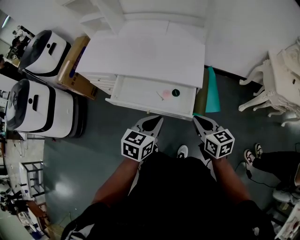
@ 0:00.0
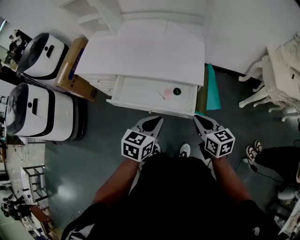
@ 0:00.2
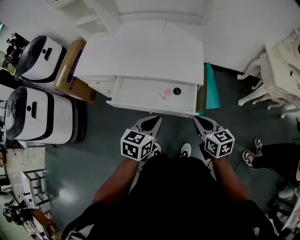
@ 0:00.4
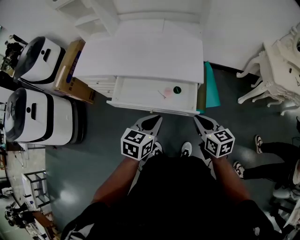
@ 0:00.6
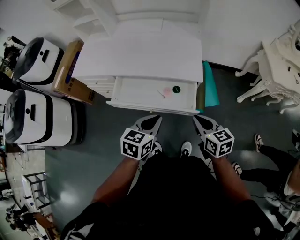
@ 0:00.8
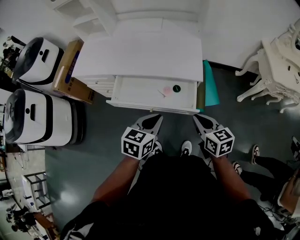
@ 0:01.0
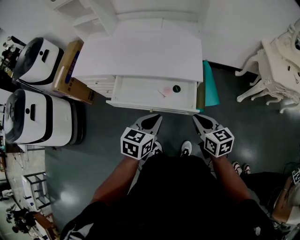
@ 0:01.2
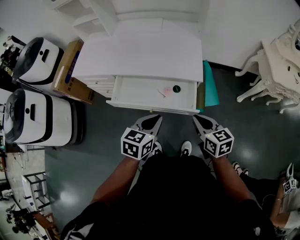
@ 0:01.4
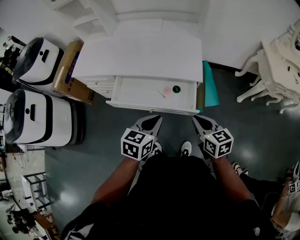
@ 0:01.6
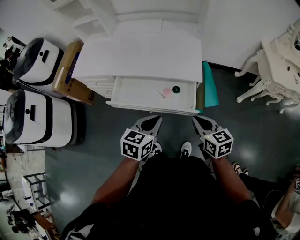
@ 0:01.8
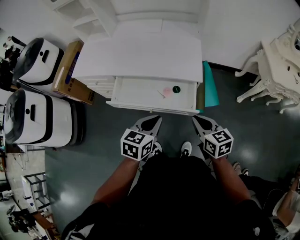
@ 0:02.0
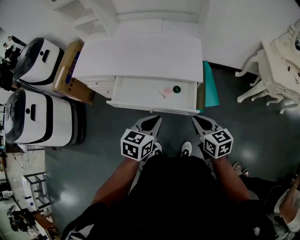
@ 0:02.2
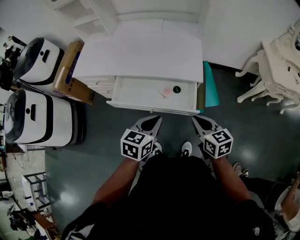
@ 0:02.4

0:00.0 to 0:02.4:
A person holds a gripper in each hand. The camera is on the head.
0:00.0 to 0:01.2: There are only small adjustments of the grippers.
0:01.2 to 0:02.4: Both grippers stay about where they are.

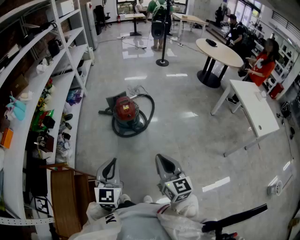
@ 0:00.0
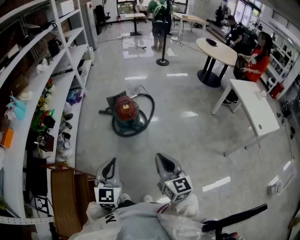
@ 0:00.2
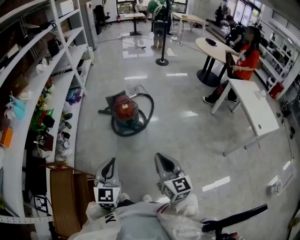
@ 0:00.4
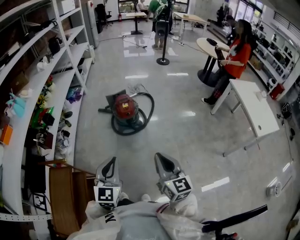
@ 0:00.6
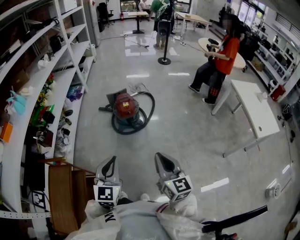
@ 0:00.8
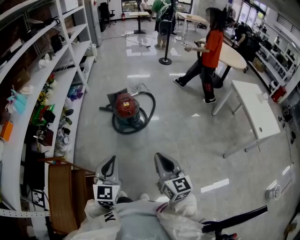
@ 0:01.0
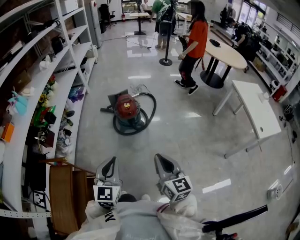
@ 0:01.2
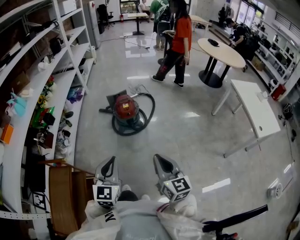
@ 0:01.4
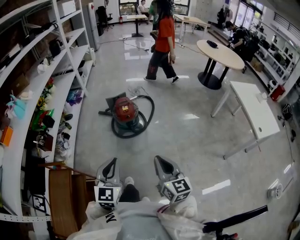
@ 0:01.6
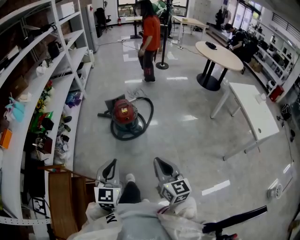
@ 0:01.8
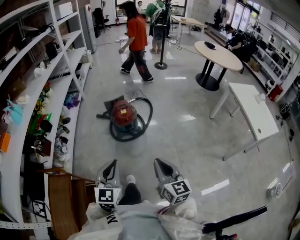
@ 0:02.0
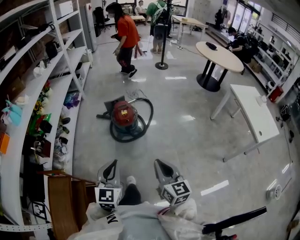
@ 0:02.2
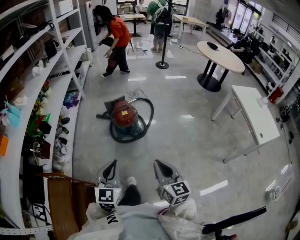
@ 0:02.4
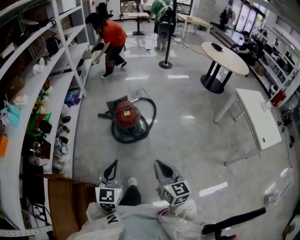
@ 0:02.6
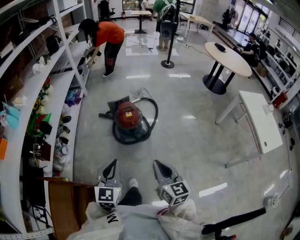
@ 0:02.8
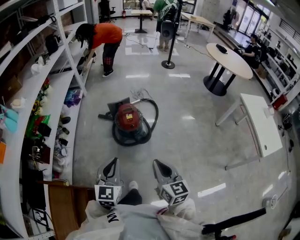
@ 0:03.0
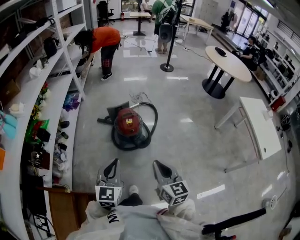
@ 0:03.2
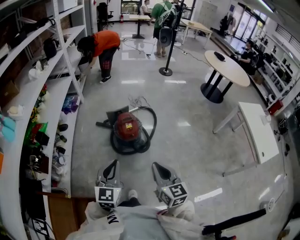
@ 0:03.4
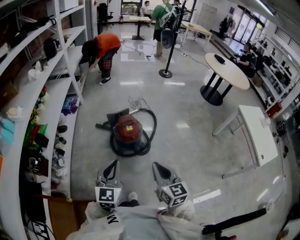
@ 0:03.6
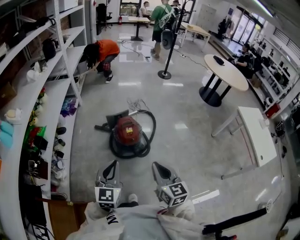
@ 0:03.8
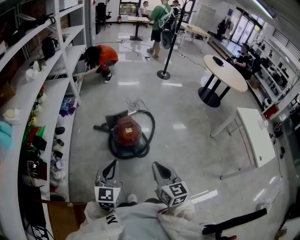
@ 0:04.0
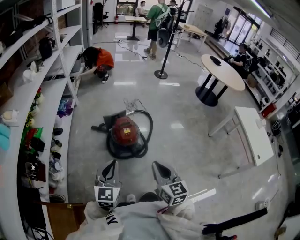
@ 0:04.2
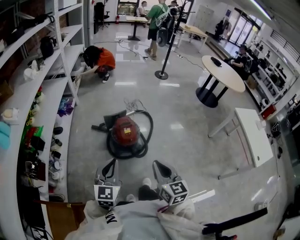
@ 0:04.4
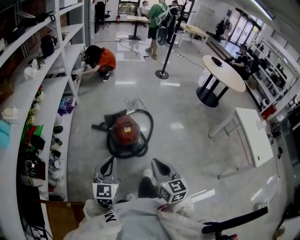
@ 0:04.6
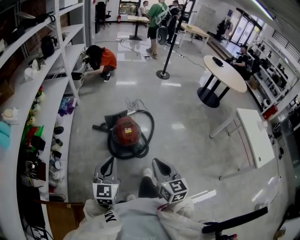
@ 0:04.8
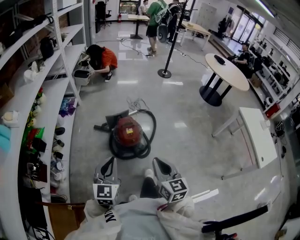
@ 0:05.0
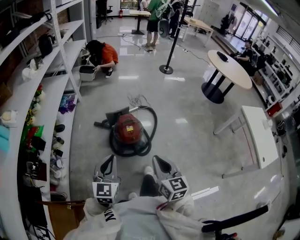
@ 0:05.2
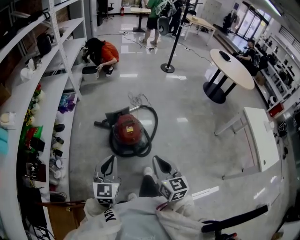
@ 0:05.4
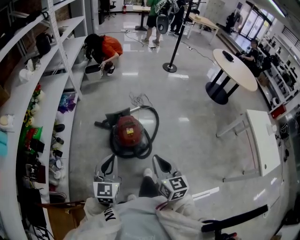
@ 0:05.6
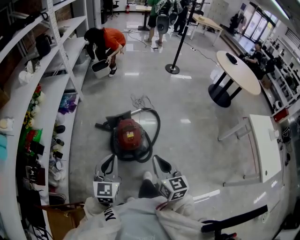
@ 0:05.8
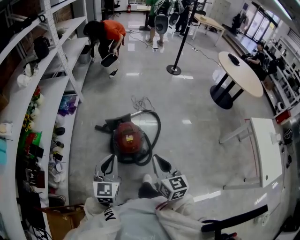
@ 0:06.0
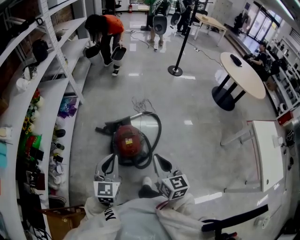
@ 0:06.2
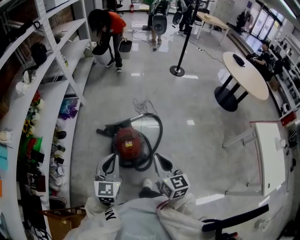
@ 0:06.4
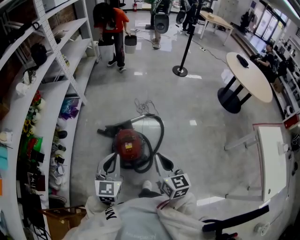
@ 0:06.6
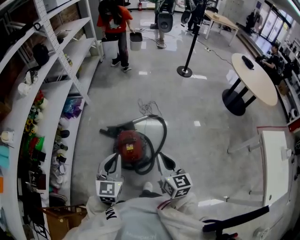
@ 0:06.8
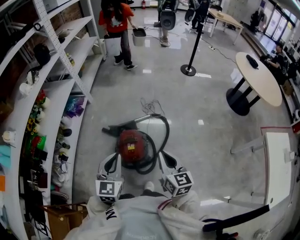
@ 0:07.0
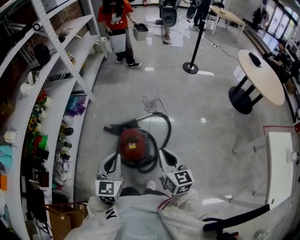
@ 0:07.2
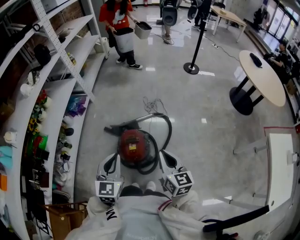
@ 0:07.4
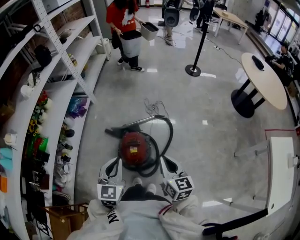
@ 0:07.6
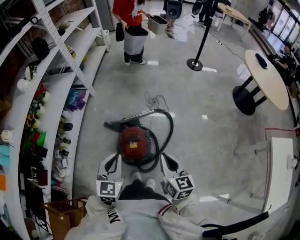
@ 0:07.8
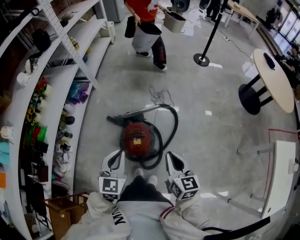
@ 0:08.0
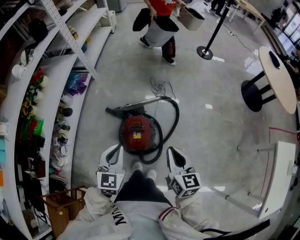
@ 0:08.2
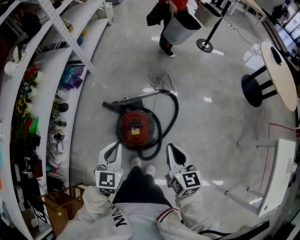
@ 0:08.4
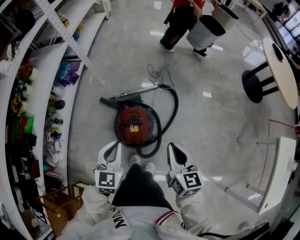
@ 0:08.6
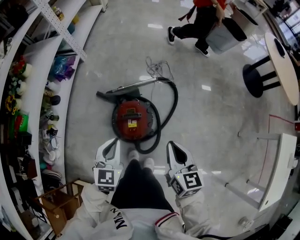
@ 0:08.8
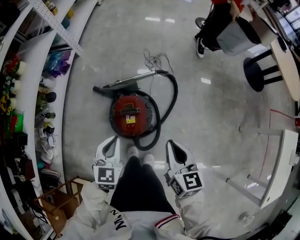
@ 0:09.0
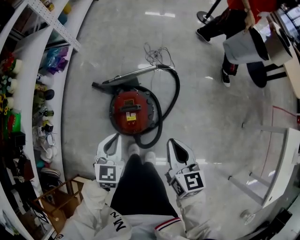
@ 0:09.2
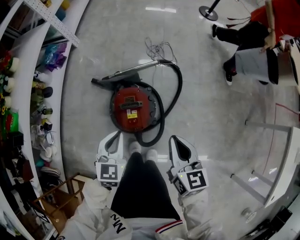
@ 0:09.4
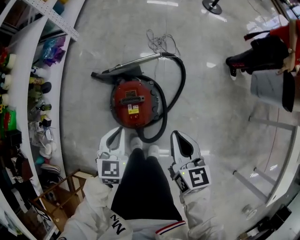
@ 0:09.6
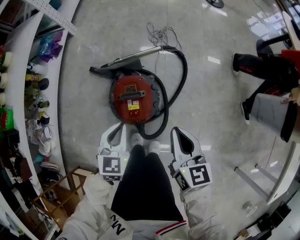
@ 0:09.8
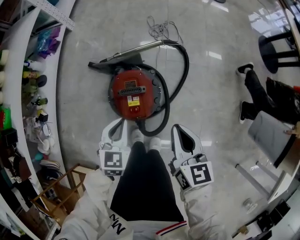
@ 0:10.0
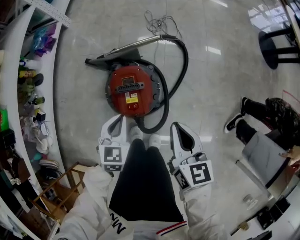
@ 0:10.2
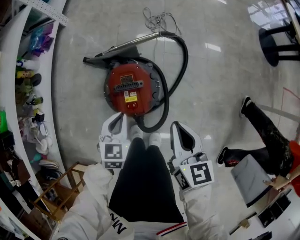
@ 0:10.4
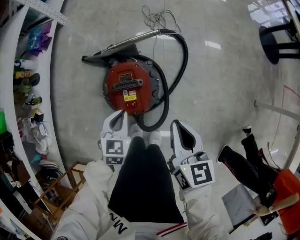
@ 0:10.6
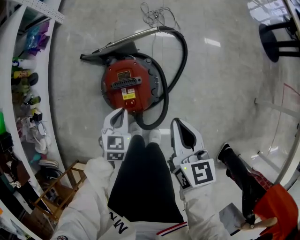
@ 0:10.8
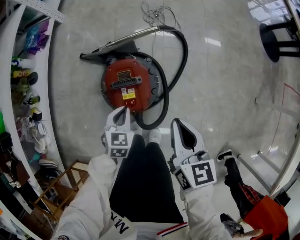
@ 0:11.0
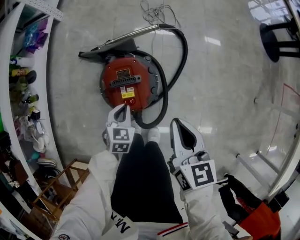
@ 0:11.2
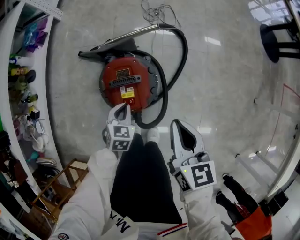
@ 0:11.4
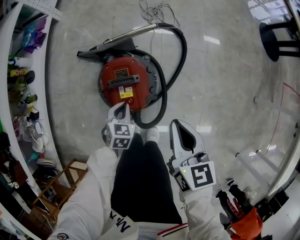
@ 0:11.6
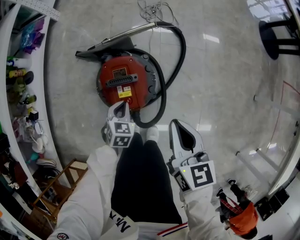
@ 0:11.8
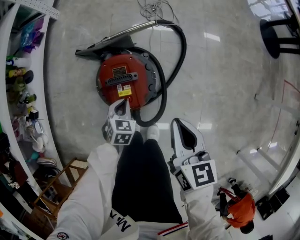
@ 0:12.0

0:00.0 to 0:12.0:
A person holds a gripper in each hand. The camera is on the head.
0:00.0 to 0:01.6: There are only small adjustments of the grippers.
0:01.6 to 0:03.0: The two grippers go about 15 cm forward.
0:03.0 to 0:04.4: The grippers both shift forward by some 10 cm.
0:04.4 to 0:06.0: The two grippers go some 15 cm forward.
0:06.0 to 0:07.6: The two grippers go approximately 15 cm forward and to the right.
0:07.6 to 0:09.0: The left gripper moves downward, about 20 cm, while the right gripper heads downward, covering approximately 10 cm.
0:09.0 to 0:10.4: The right gripper is displaced downward by roughly 10 cm. The left gripper heads downward, covering some 15 cm.
0:10.4 to 0:12.0: The left gripper heads downward, covering approximately 15 cm.

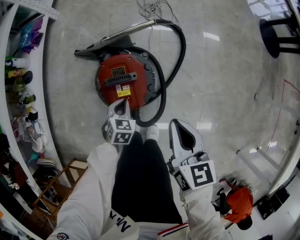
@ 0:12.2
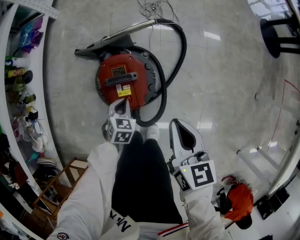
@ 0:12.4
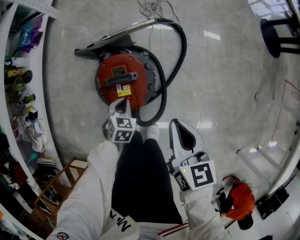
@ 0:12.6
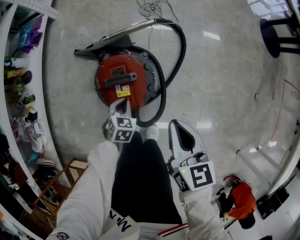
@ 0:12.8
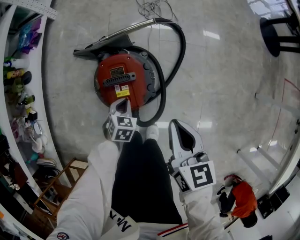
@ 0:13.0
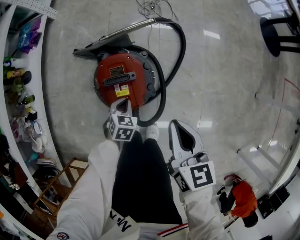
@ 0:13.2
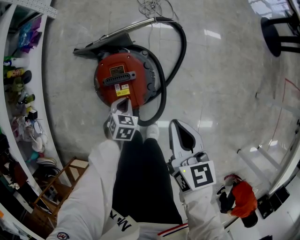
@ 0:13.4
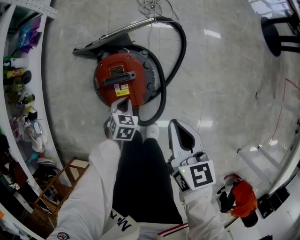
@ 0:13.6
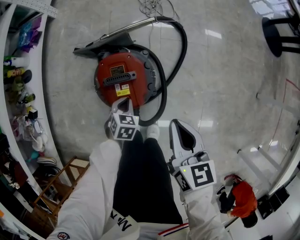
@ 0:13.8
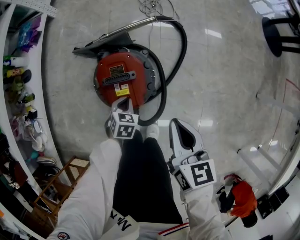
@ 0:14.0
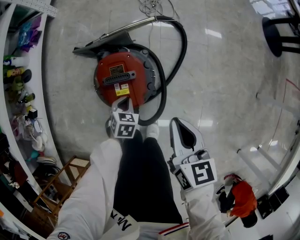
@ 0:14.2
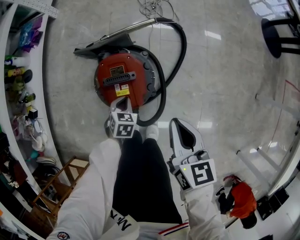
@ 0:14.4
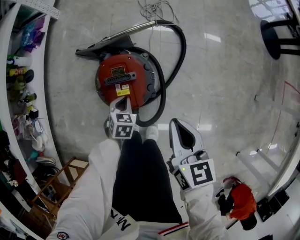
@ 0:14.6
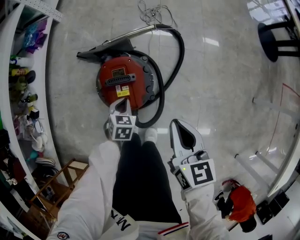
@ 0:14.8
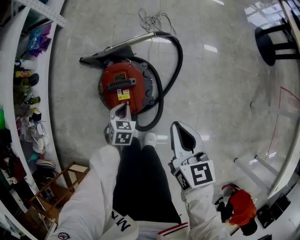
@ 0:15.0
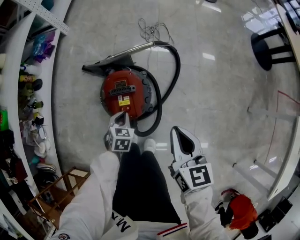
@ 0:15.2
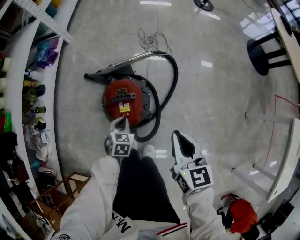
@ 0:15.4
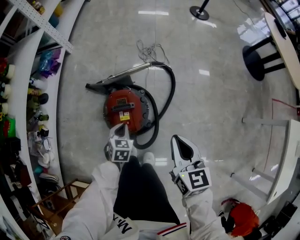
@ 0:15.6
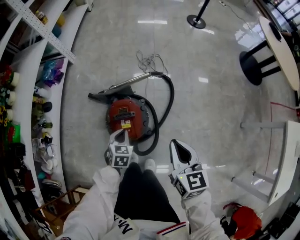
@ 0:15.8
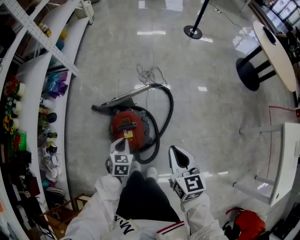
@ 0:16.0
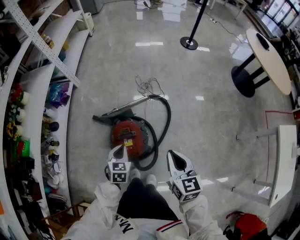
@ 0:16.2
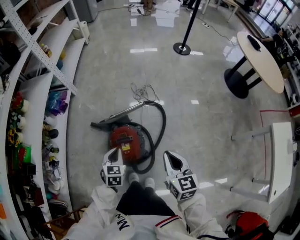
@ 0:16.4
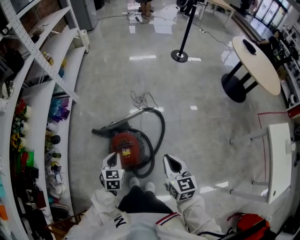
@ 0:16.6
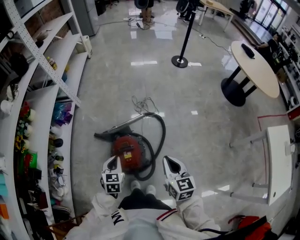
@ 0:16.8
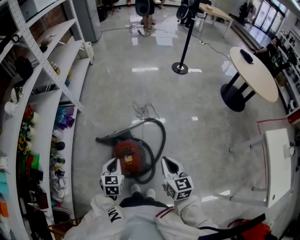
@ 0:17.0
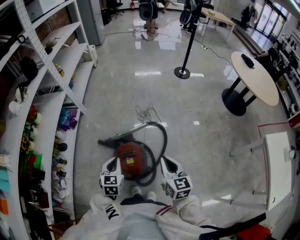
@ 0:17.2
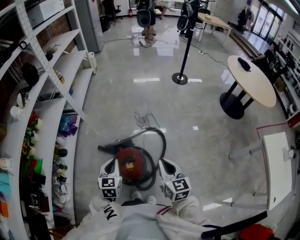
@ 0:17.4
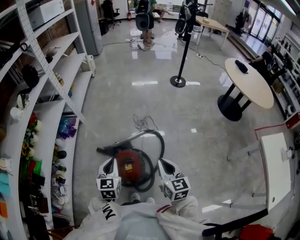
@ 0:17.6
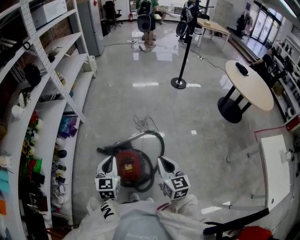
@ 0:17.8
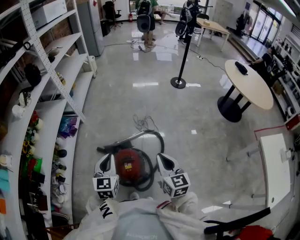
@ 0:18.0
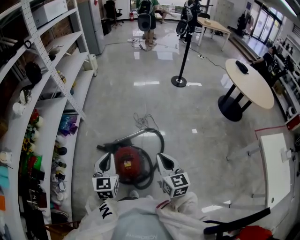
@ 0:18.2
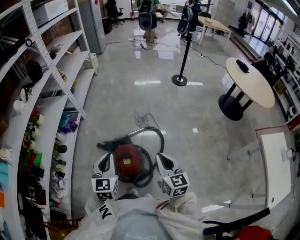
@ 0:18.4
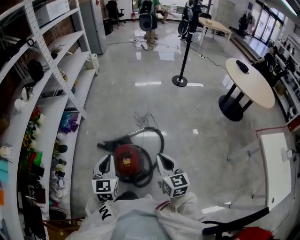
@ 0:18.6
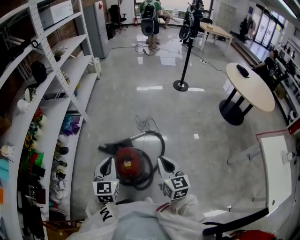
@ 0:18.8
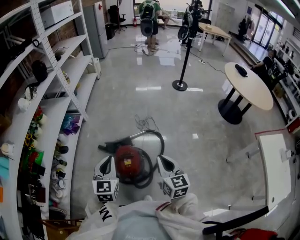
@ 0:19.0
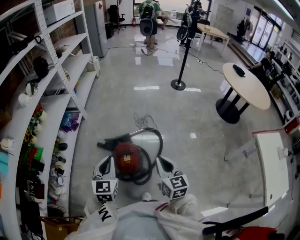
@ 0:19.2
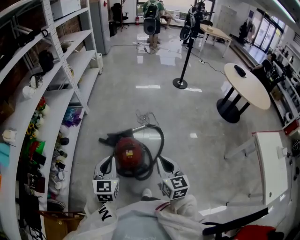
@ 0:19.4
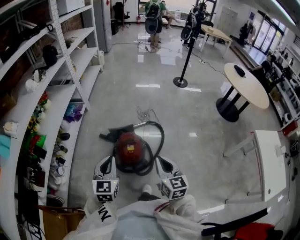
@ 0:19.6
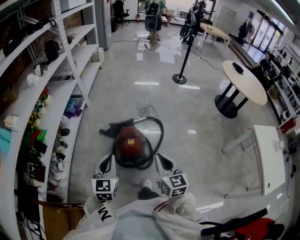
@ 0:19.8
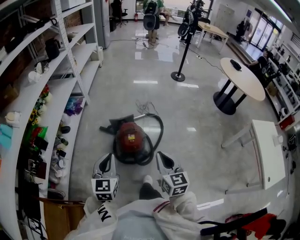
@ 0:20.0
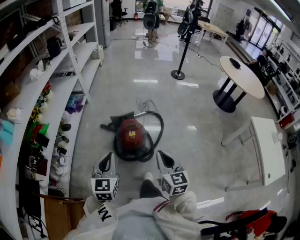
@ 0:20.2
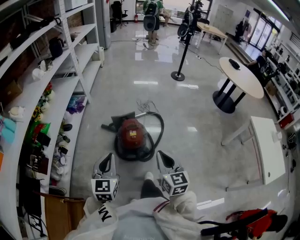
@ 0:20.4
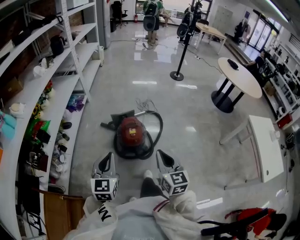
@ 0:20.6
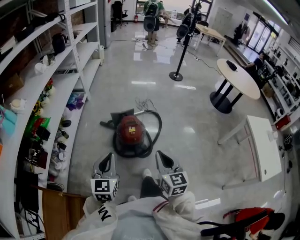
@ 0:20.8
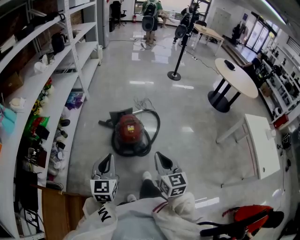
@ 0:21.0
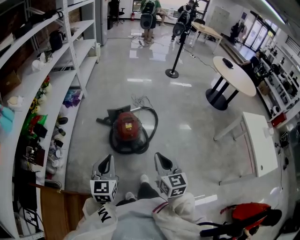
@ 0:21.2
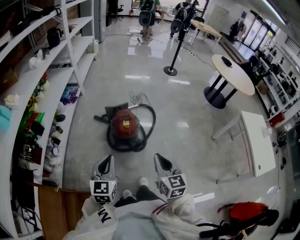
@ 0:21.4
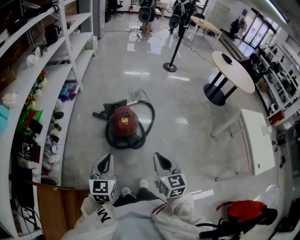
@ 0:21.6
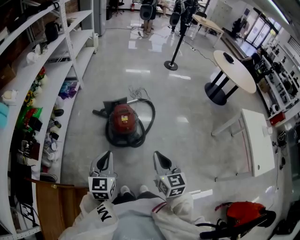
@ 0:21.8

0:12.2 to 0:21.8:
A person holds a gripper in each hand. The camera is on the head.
0:12.2 to 0:13.8: The grippers move only a little.
0:13.8 to 0:15.4: Both grippers travel together upward, some 10 cm.
0:15.4 to 0:17.0: The left gripper travels upward by about 25 cm. Meanwhile the right gripper travels upward by approximately 15 cm.
0:17.0 to 0:18.6: The left gripper is displaced upward by some 15 cm. Meanwhile the right gripper heads upward, covering some 5 cm.
0:18.6 to 0:20.2: The two grippers go approximately 25 cm backward and to the left.
0:20.2 to 0:21.8: The two grippers go about 10 cm backward.
